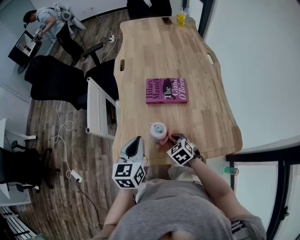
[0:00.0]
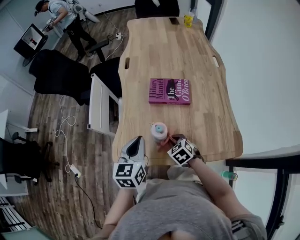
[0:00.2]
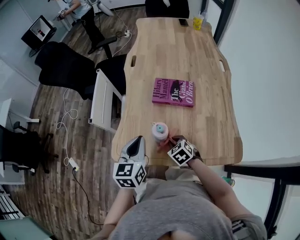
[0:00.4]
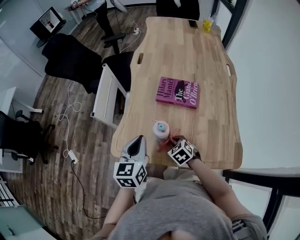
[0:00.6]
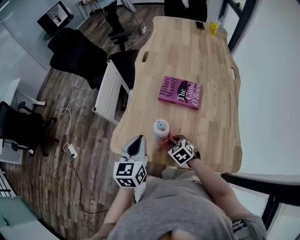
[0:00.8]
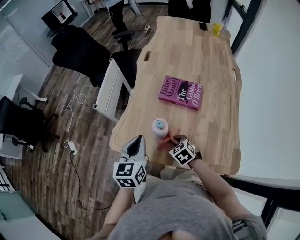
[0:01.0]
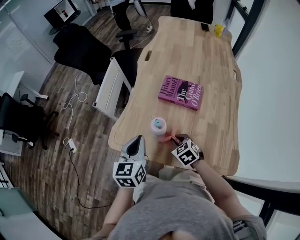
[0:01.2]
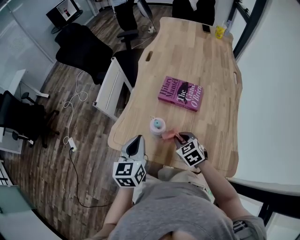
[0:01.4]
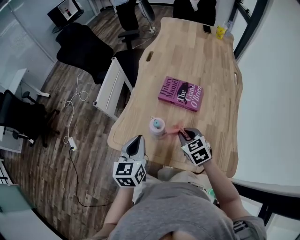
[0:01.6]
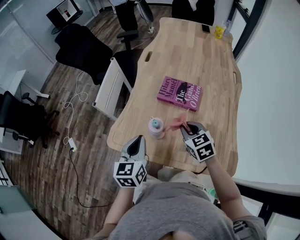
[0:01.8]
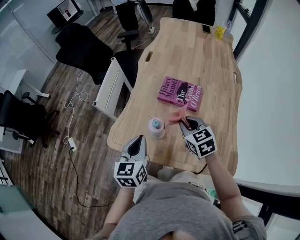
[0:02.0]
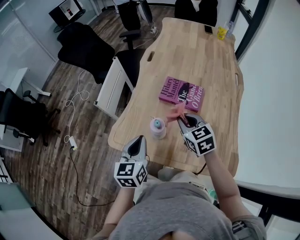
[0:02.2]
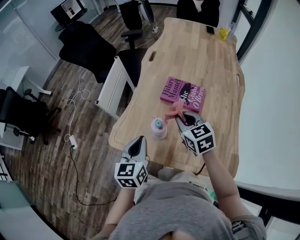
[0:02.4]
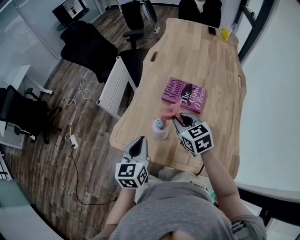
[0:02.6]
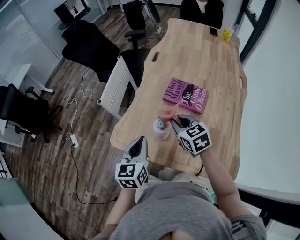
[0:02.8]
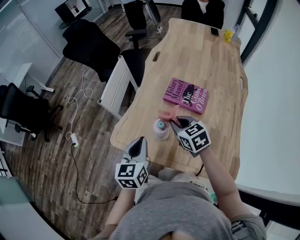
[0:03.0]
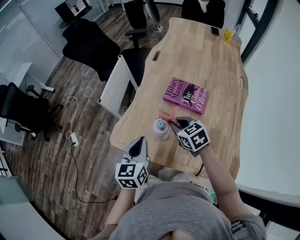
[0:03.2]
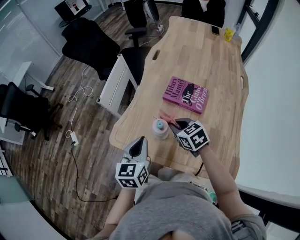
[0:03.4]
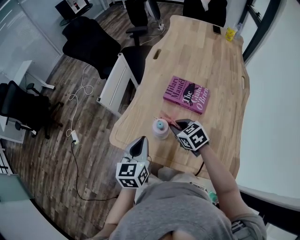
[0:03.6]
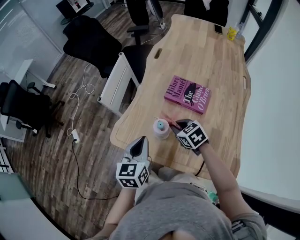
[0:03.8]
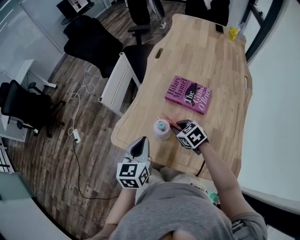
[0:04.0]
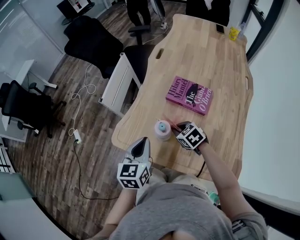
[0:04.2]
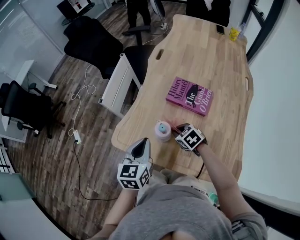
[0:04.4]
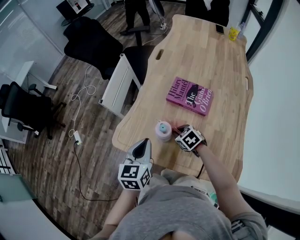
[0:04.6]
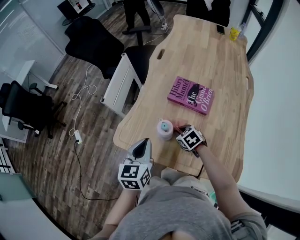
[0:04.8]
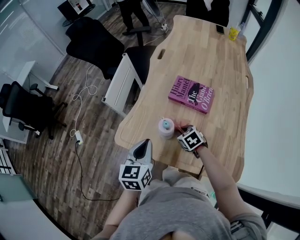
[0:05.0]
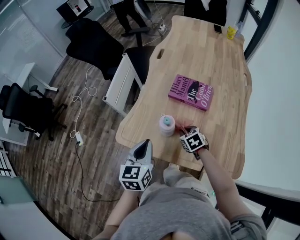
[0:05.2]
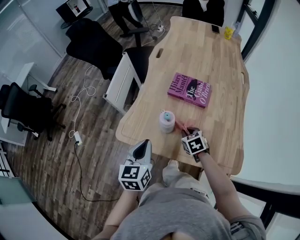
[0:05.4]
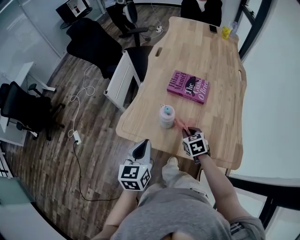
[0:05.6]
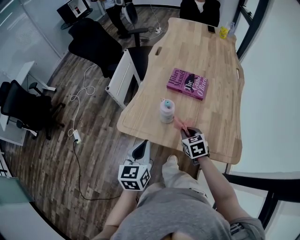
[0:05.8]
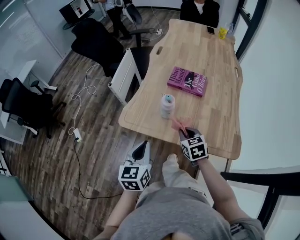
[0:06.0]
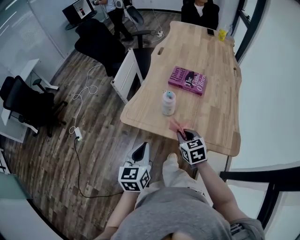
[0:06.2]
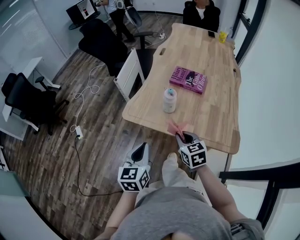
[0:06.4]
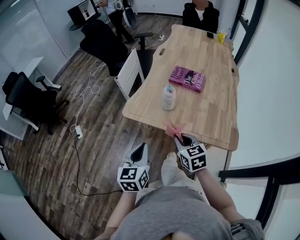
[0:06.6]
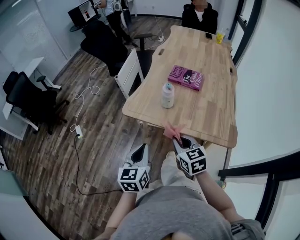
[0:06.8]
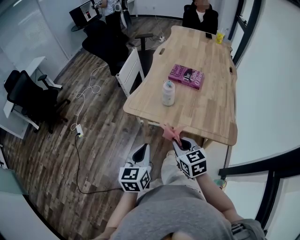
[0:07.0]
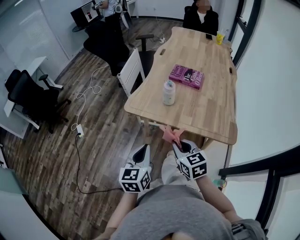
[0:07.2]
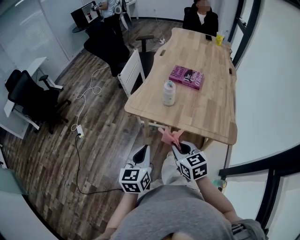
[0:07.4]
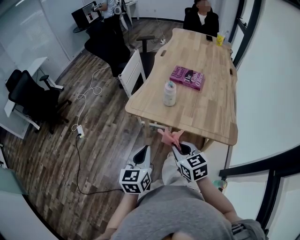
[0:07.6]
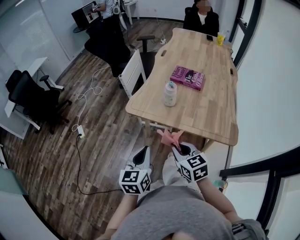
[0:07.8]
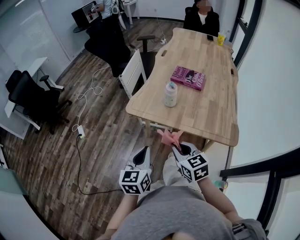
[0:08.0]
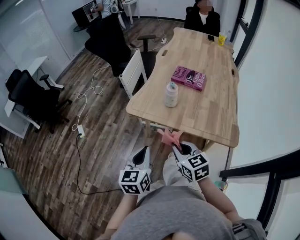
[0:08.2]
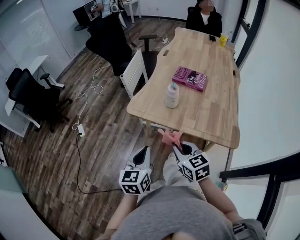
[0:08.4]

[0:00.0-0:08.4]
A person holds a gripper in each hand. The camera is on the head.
0:00.0 to 0:01.4: The right gripper shifts by about 5 cm. The left gripper swivels about 20 degrees.
0:01.4 to 0:02.8: The right gripper heads upward and forward, covering approximately 10 cm.
0:02.8 to 0:04.2: The right gripper travels downward by roughly 15 cm, and changes its angle by approximately 20 degrees.
0:04.2 to 0:05.6: The grippers both shift backward by some 10 cm. The right gripper rotates some 30 degrees.
0:05.6 to 0:07.0: The right gripper goes about 30 cm backward, upward and to the left, and swivels some 20 degrees. The left gripper heads backward, covering about 20 cm.
0:07.0 to 0:08.4: There are only small adjustments of the grippers.

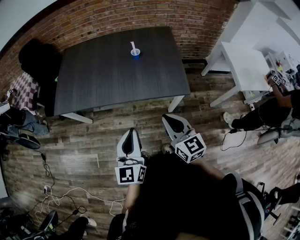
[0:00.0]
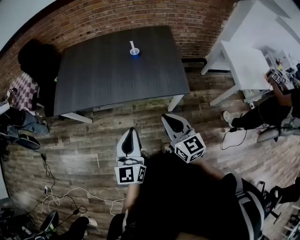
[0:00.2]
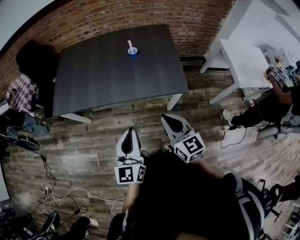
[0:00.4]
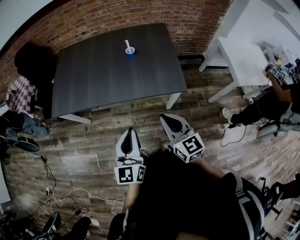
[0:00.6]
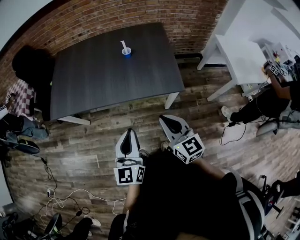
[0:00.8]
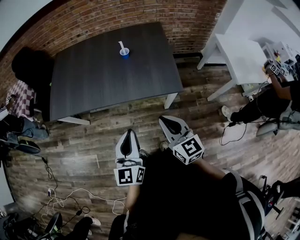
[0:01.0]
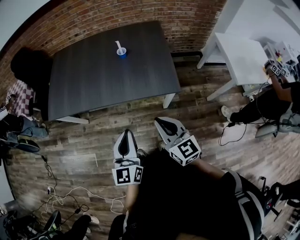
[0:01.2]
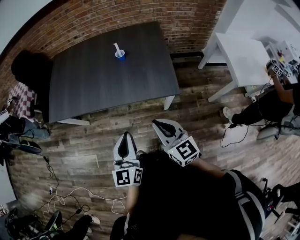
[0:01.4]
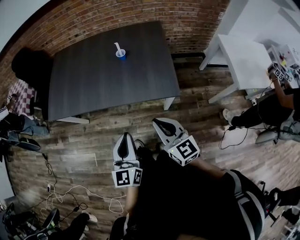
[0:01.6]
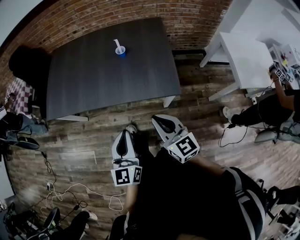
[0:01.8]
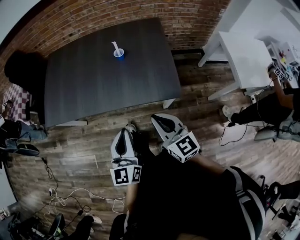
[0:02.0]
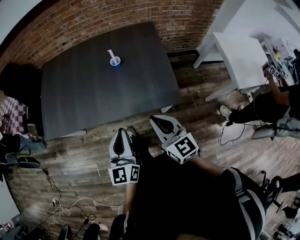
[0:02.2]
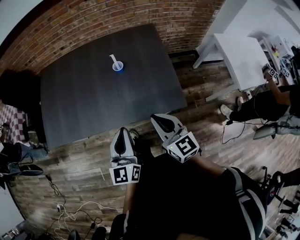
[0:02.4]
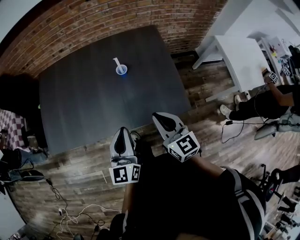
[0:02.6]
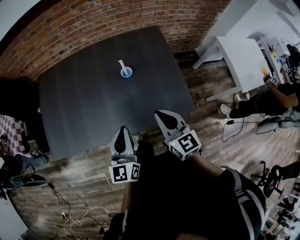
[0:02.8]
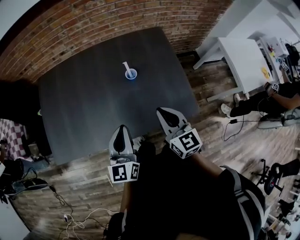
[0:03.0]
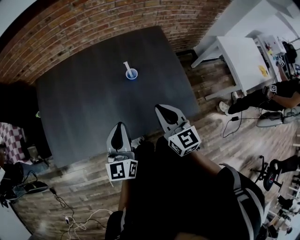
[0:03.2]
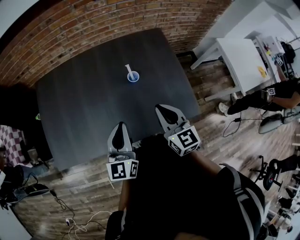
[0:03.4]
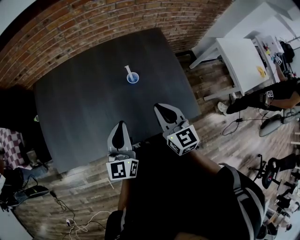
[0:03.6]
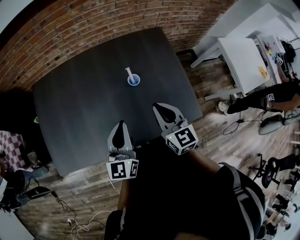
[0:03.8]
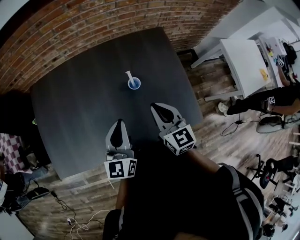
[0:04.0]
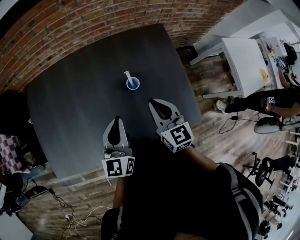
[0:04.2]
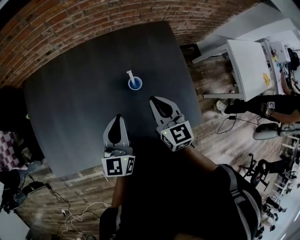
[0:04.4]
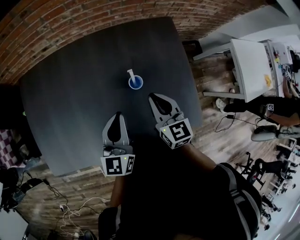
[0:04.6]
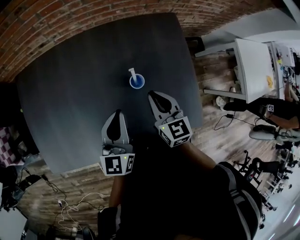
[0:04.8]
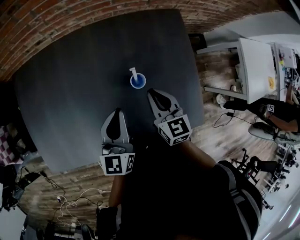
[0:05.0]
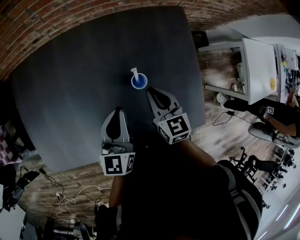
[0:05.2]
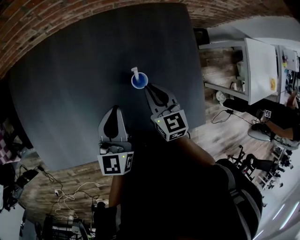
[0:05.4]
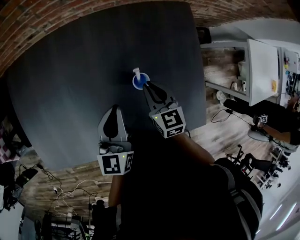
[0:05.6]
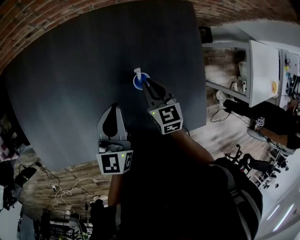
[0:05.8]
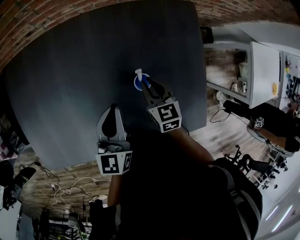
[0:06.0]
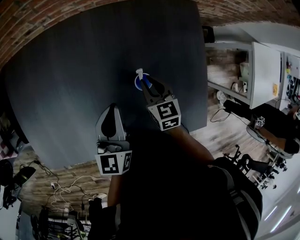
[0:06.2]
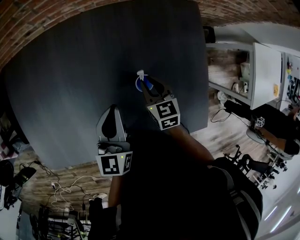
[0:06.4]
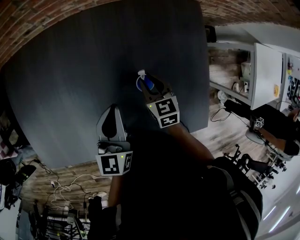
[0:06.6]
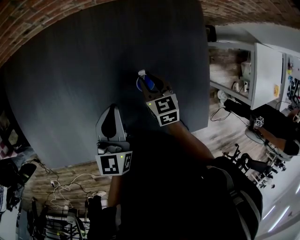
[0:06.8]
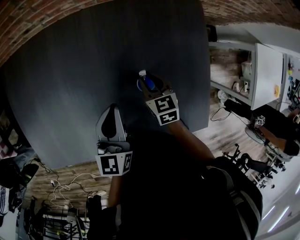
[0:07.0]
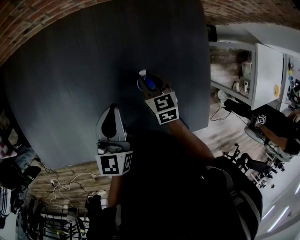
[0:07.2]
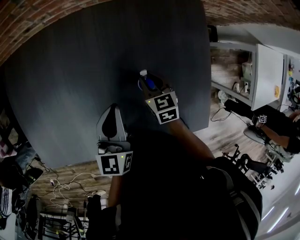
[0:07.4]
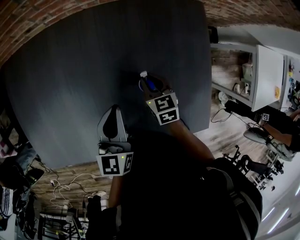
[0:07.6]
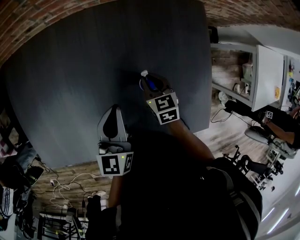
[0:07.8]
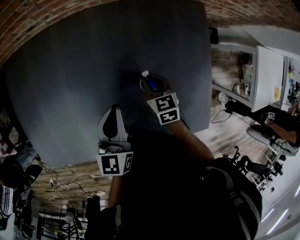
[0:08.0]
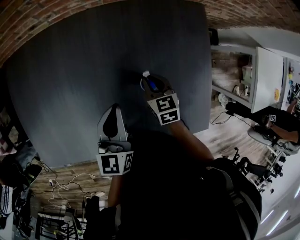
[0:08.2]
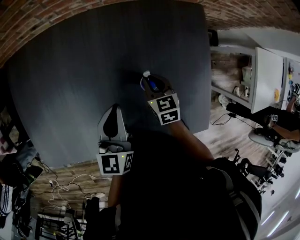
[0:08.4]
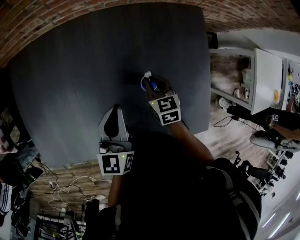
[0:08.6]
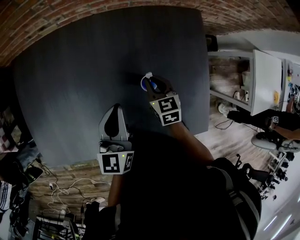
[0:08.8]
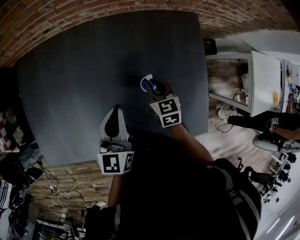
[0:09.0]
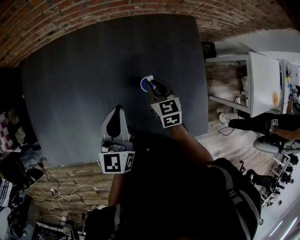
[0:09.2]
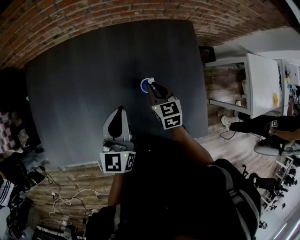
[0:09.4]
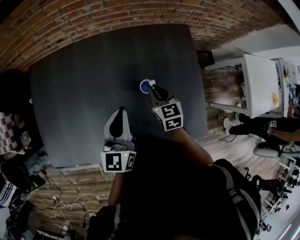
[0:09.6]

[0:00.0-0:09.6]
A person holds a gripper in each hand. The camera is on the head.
0:00.0 to 0:01.6: Both grippers travel together to the right, approximately 10 cm.
0:01.6 to 0:03.2: The left gripper heads forward and to the left, covering about 40 cm. Meanwhile the right gripper heads forward, covering approximately 30 cm, and changes its angle by roughly 20 degrees.
0:03.2 to 0:04.8: The left gripper heads forward, covering about 20 cm. Meanwhile the right gripper moves forward and downward, some 25 cm.
0:04.8 to 0:06.4: The right gripper moves downward and forward, approximately 15 cm, while the left gripper travels downward and forward by approximately 10 cm.
0:06.4 to 0:08.0: The grippers make only small movements.
0:08.0 to 0:09.6: The right gripper moves upward, some 10 cm. Meanwhile the left gripper is displaced upward and backward by some 10 cm.

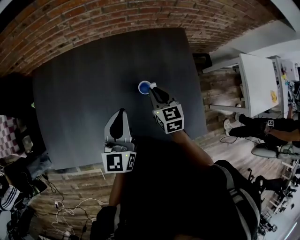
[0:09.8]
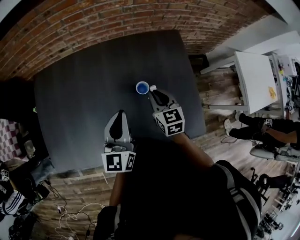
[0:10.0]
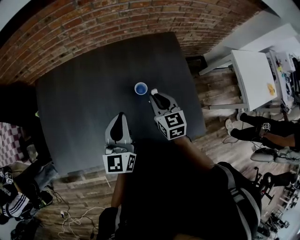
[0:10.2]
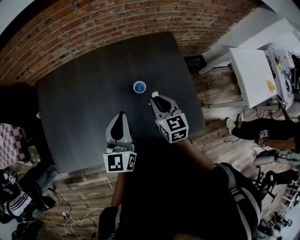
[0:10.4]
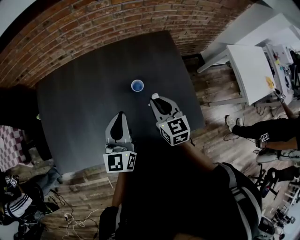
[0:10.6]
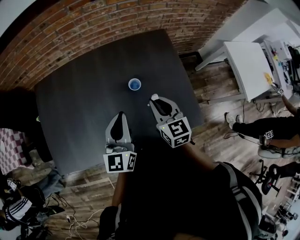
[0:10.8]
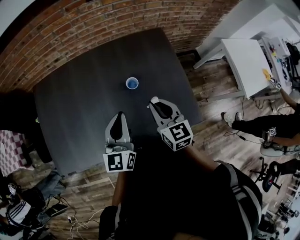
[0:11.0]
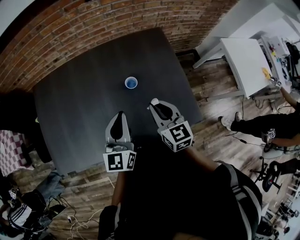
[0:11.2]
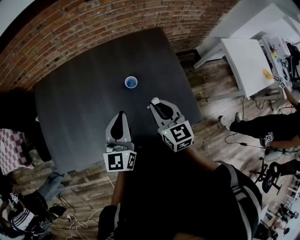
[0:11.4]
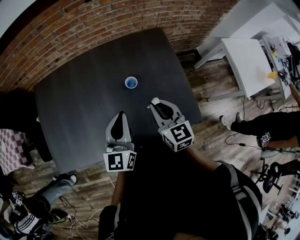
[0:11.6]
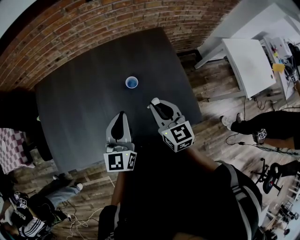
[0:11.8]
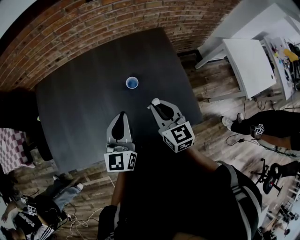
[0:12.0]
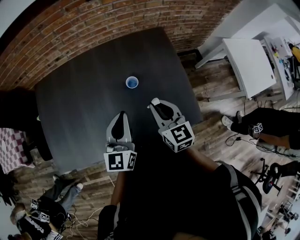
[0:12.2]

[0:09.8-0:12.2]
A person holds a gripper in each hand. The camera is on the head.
0:09.8 to 0:11.0: The left gripper travels backward by some 10 cm, while the right gripper shifts approximately 15 cm backward and upward.
0:11.0 to 0:12.2: The grippers make only small movements.

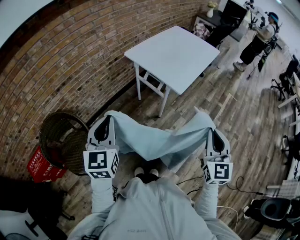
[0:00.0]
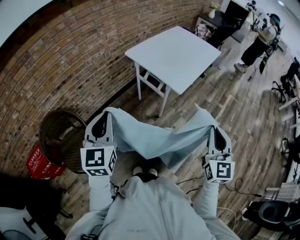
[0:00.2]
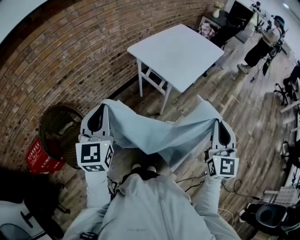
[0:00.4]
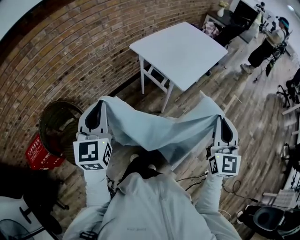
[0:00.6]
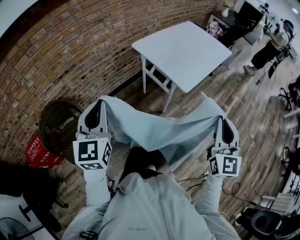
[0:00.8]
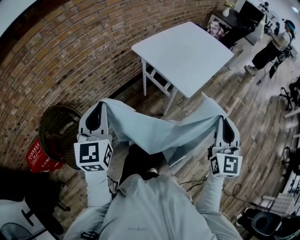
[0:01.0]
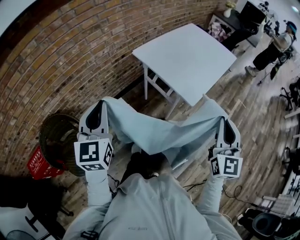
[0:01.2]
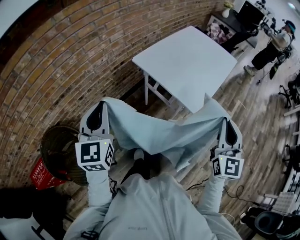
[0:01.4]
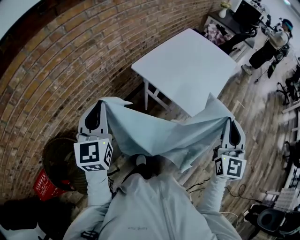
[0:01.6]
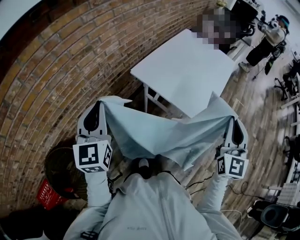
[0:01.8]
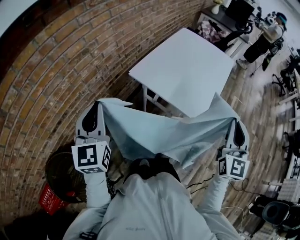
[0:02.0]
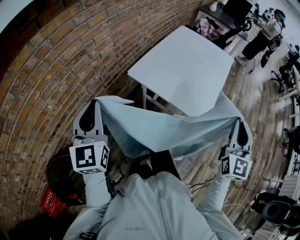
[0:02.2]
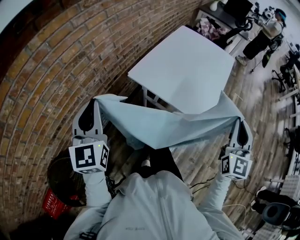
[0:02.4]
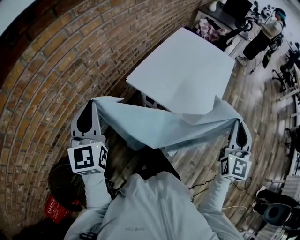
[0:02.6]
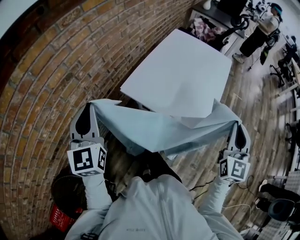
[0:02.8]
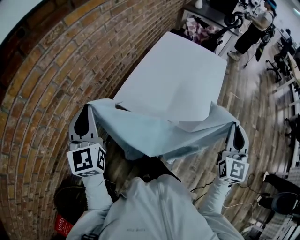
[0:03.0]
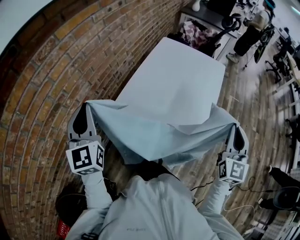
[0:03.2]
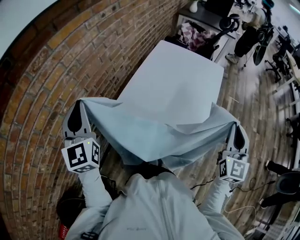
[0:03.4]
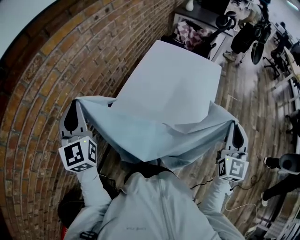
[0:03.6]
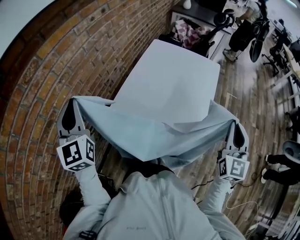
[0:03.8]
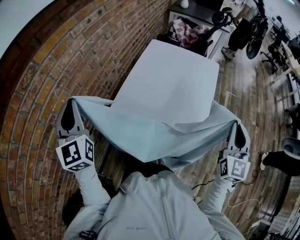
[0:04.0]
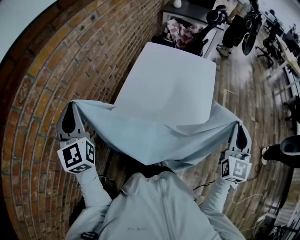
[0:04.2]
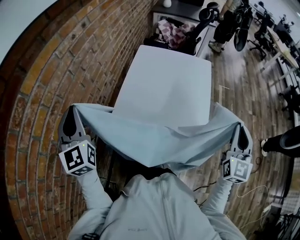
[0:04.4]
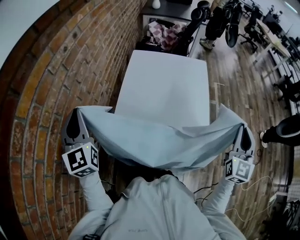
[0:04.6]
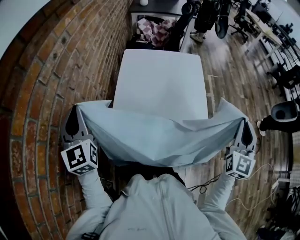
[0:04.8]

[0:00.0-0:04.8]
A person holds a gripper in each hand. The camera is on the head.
0:00.0 to 0:01.6: Both grippers travel together forward, roughly 25 cm.
0:01.6 to 0:03.2: The left gripper travels forward by approximately 30 cm, while the right gripper travels forward by some 15 cm.
0:03.2 to 0:04.8: The left gripper goes about 25 cm forward. The right gripper changes place by about 5 cm, and rotates about 30 degrees.
